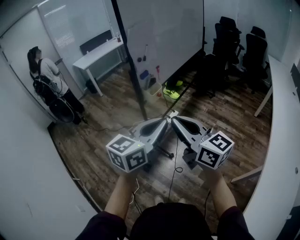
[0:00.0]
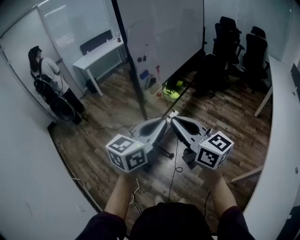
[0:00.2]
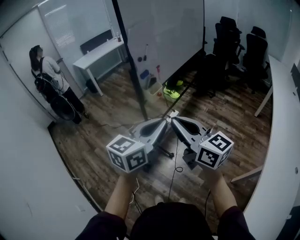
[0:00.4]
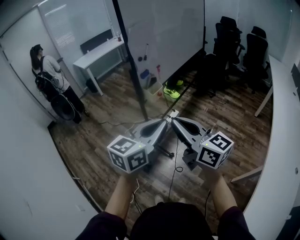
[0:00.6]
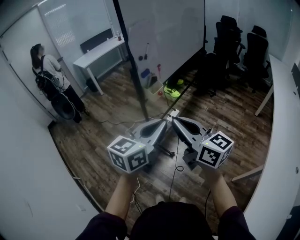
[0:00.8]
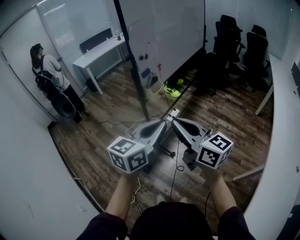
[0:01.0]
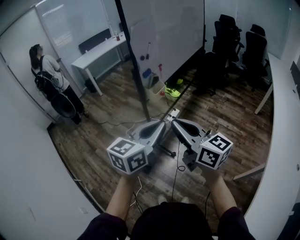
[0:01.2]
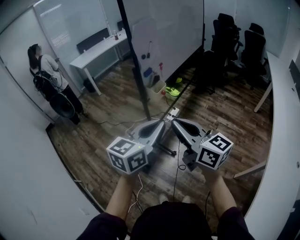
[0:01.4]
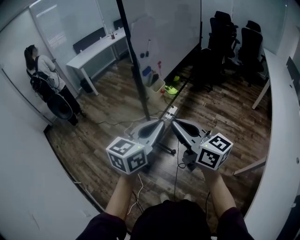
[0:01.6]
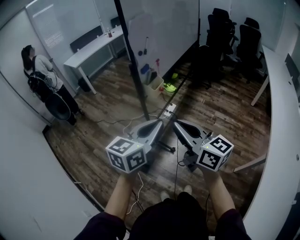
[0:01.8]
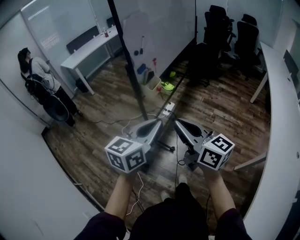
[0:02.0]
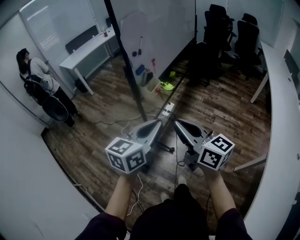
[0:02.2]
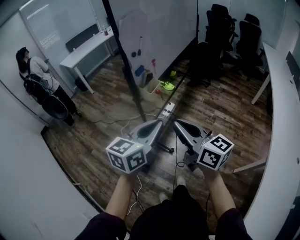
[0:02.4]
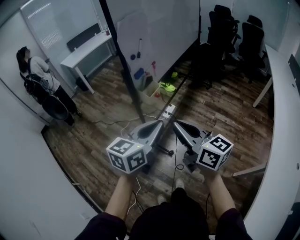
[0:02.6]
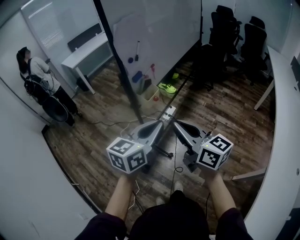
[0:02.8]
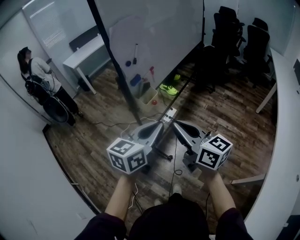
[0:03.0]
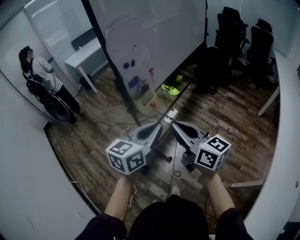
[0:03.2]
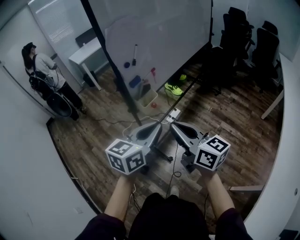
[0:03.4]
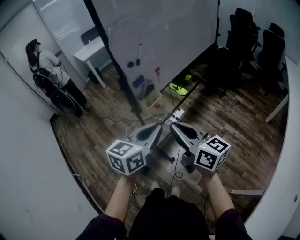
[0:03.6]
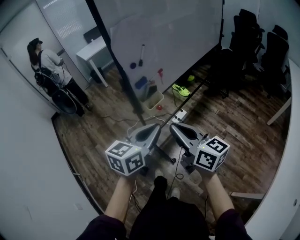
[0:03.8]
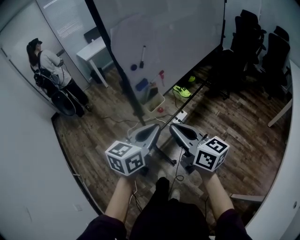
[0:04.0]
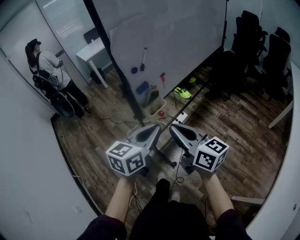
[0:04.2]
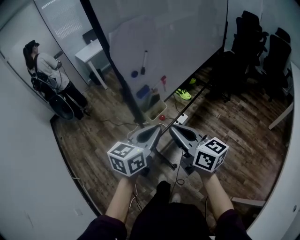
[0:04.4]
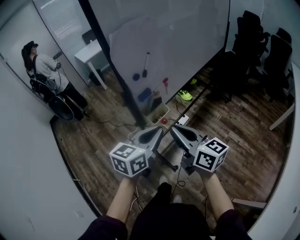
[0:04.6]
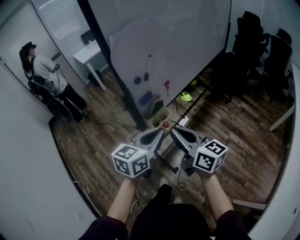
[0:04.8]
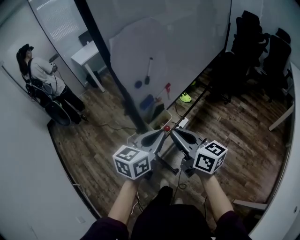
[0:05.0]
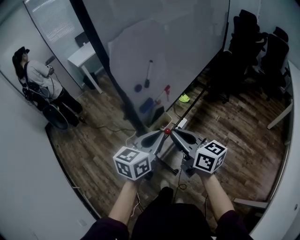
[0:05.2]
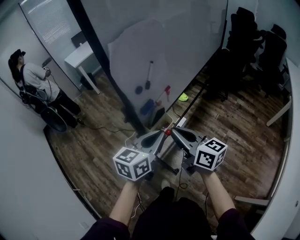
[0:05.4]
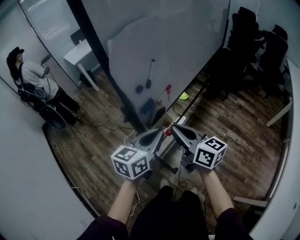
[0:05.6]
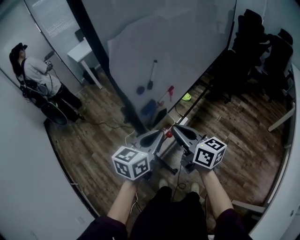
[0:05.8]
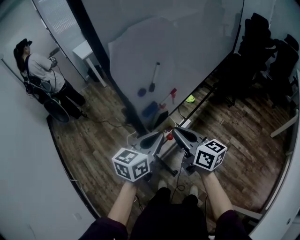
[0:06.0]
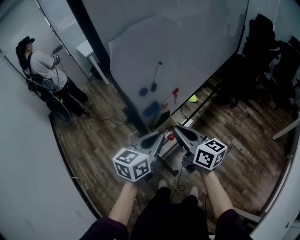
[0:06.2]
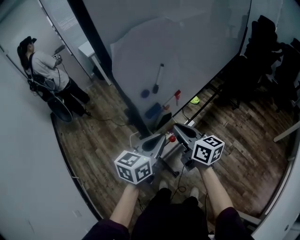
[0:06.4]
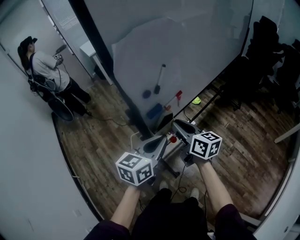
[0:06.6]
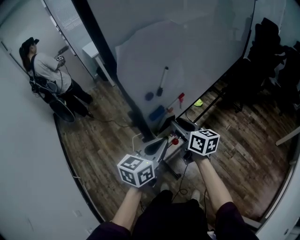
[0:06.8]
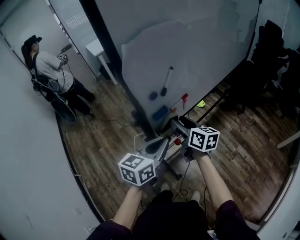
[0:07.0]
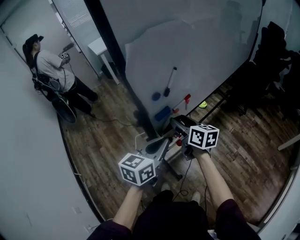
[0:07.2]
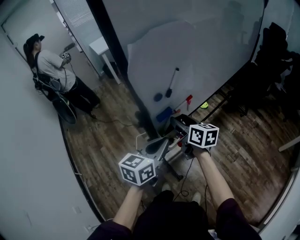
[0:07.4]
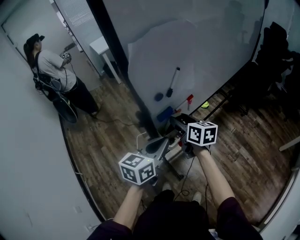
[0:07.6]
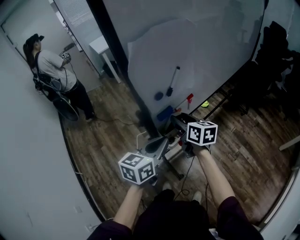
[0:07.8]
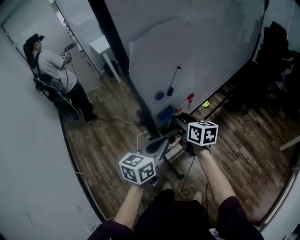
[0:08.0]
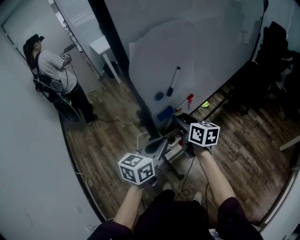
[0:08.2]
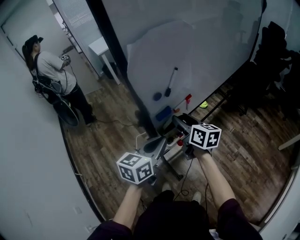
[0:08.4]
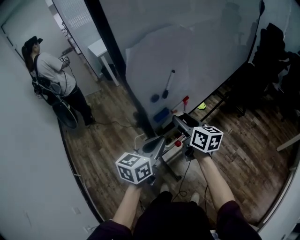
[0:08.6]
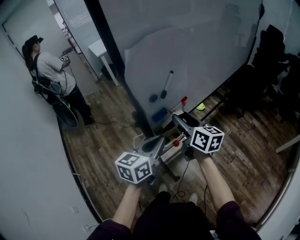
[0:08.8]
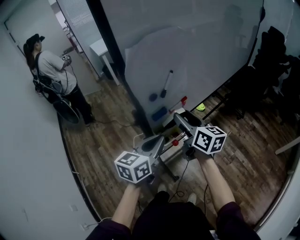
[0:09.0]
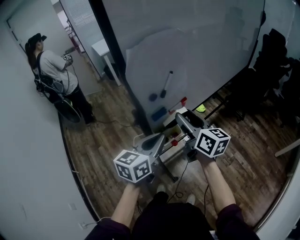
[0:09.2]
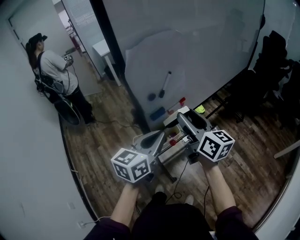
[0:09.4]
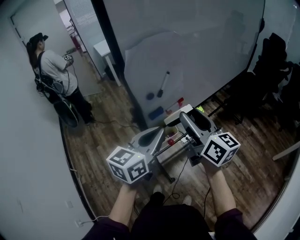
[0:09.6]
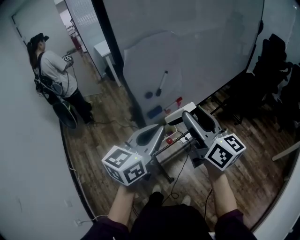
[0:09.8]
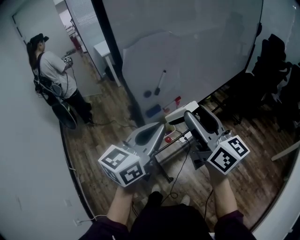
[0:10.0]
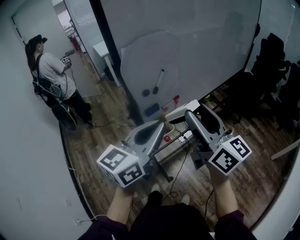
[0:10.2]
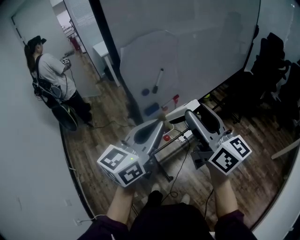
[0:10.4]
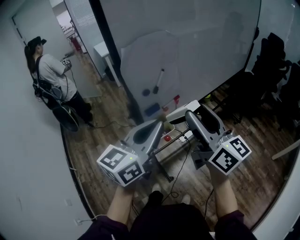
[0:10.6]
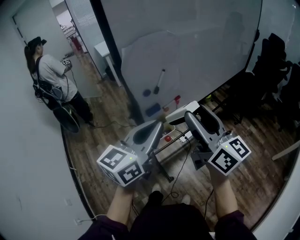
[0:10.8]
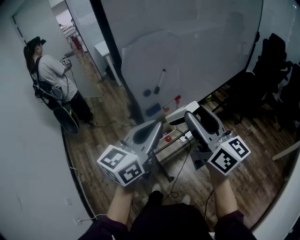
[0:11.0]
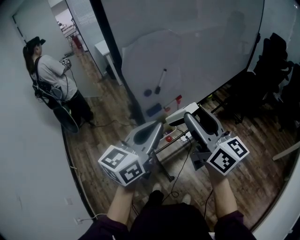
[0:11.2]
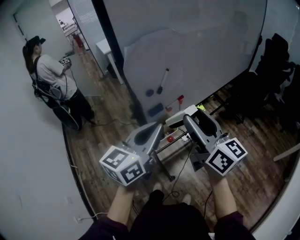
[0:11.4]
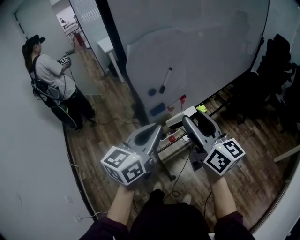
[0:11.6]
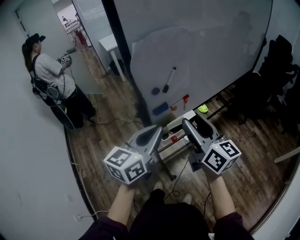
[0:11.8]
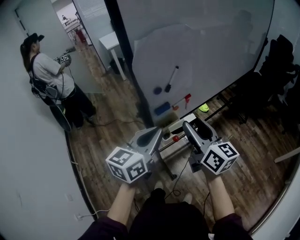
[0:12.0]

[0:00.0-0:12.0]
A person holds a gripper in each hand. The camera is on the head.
0:00.0 to 0:01.6: The grippers both shift to the left by roughly 5 cm.
0:01.6 to 0:03.0: The two grippers go some 15 cm forward and to the right.
0:03.0 to 0:04.4: The two grippers go roughly 15 cm forward.
0:04.4 to 0:06.0: The left gripper is displaced forward by about 10 cm; the right gripper is displaced forward and downward by approximately 15 cm.
0:06.0 to 0:07.6: The right gripper travels forward and downward by some 15 cm, and opens.
0:07.6 to 0:09.0: The right gripper travels upward by about 10 cm.
0:09.0 to 0:10.4: The left gripper heads upward, covering about 15 cm. The right gripper is displaced upward, backward and to the right by approximately 20 cm, and changes its angle by some 20 degrees.
0:10.4 to 0:12.0: The two grippers go roughly 10 cm downward.

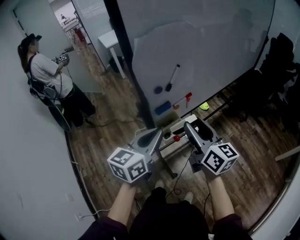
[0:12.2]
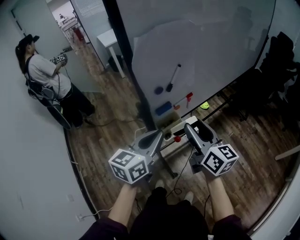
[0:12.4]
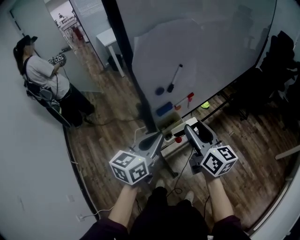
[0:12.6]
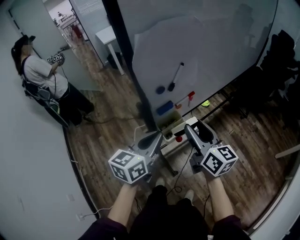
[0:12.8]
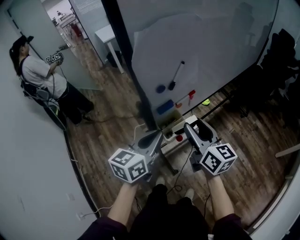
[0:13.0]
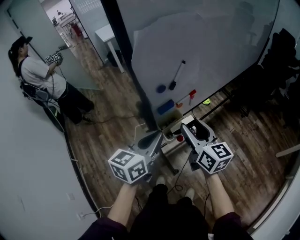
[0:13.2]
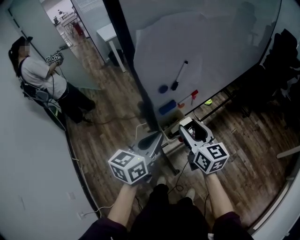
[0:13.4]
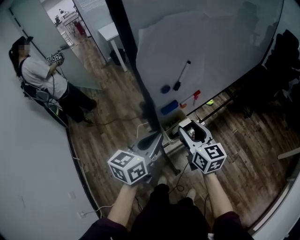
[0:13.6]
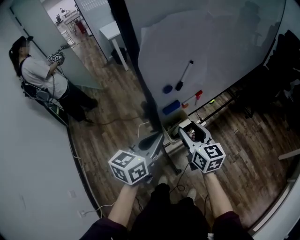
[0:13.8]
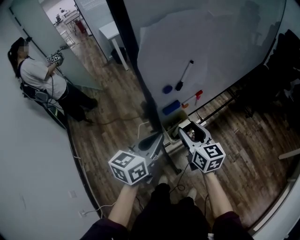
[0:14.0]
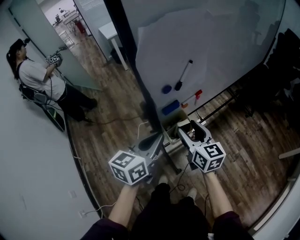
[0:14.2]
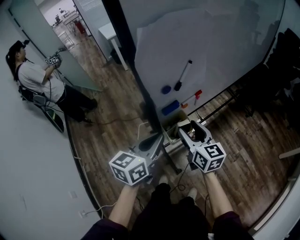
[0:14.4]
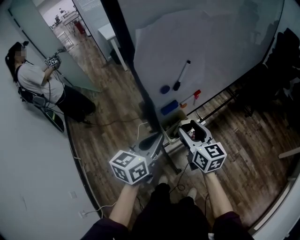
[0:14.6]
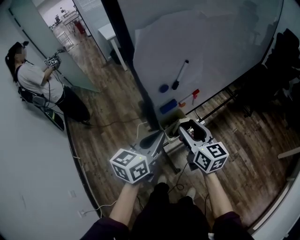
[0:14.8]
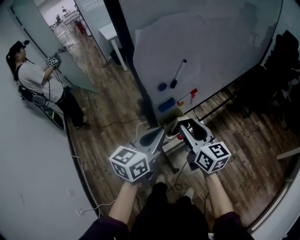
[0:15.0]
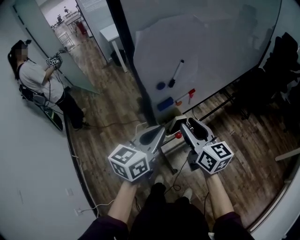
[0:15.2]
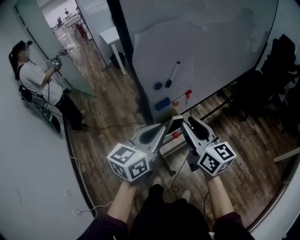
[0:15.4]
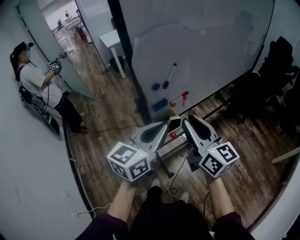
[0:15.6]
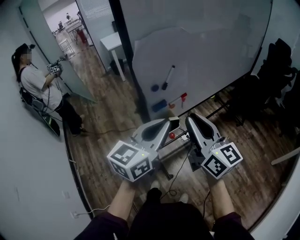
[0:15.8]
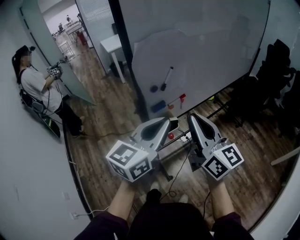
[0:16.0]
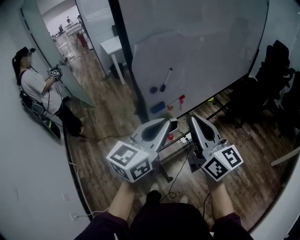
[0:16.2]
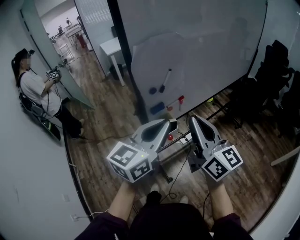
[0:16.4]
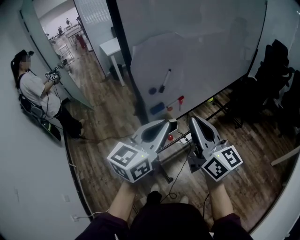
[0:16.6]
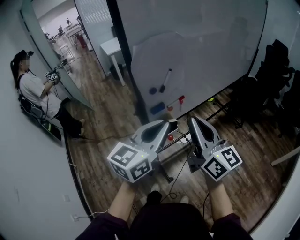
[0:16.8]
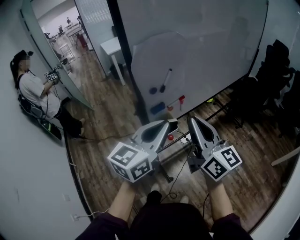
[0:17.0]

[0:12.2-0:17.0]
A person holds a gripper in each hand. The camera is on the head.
0:12.2 to 0:13.8: The right gripper travels downward and to the left by roughly 10 cm, while the left gripper moves about 5 cm.
0:13.8 to 0:15.4: The left gripper is displaced upward by about 5 cm. Meanwhile the right gripper heads upward and backward, covering roughly 15 cm, and closes up.
0:15.4 to 0:17.0: Both grippers travel together upward, approximately 10 cm. The right gripper closes.

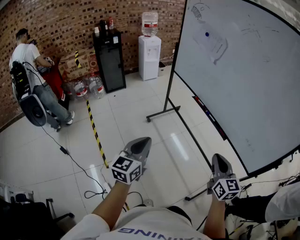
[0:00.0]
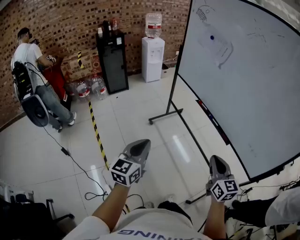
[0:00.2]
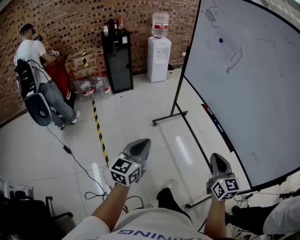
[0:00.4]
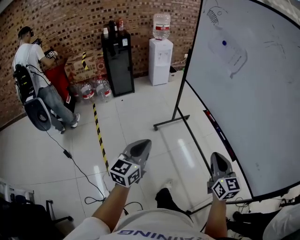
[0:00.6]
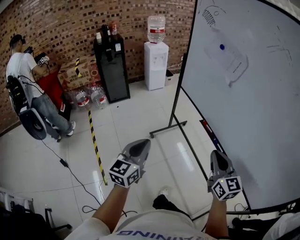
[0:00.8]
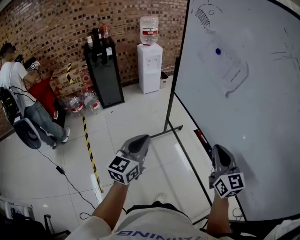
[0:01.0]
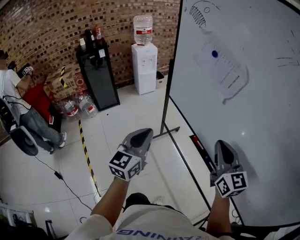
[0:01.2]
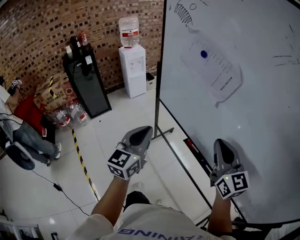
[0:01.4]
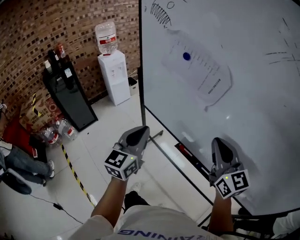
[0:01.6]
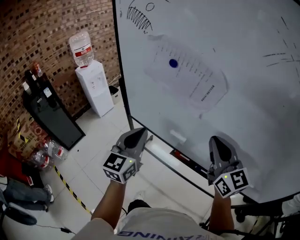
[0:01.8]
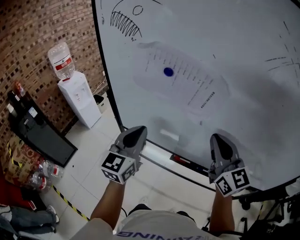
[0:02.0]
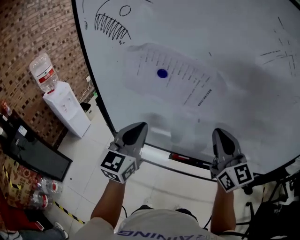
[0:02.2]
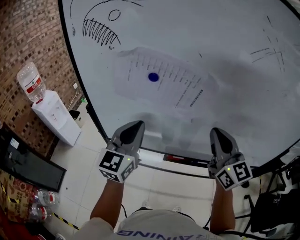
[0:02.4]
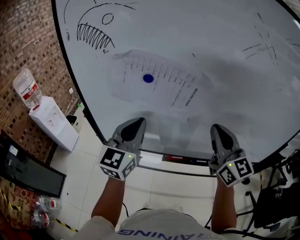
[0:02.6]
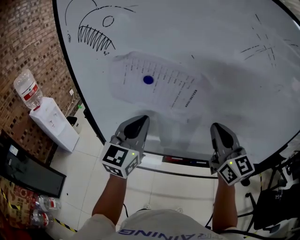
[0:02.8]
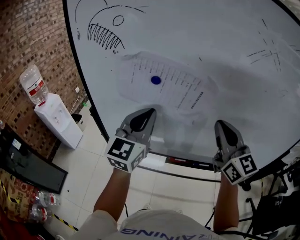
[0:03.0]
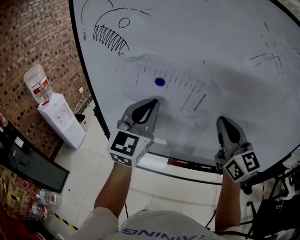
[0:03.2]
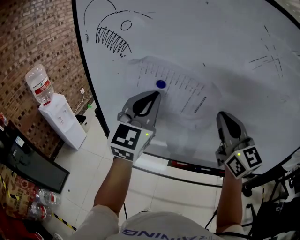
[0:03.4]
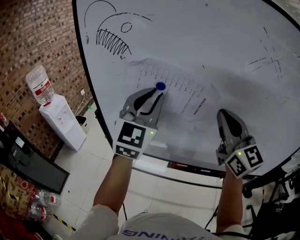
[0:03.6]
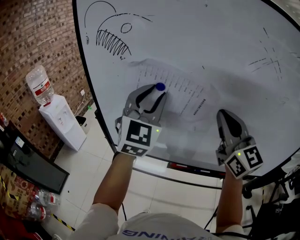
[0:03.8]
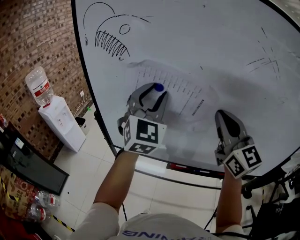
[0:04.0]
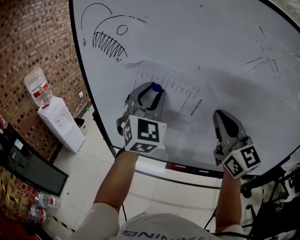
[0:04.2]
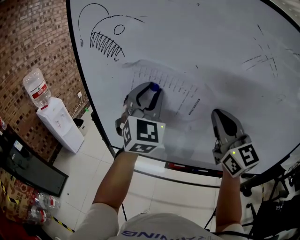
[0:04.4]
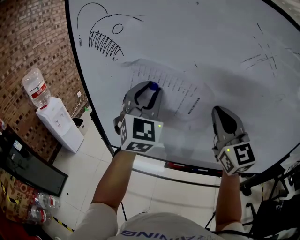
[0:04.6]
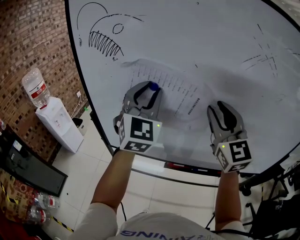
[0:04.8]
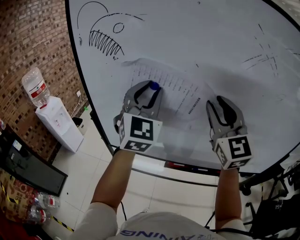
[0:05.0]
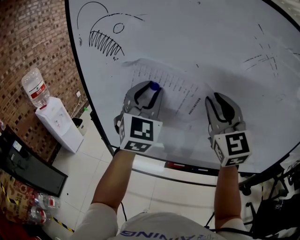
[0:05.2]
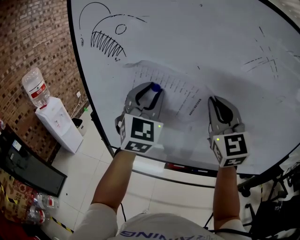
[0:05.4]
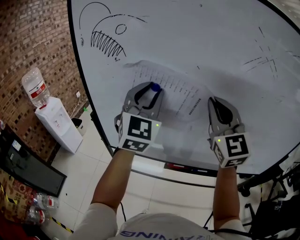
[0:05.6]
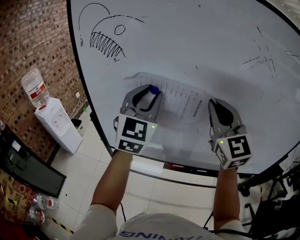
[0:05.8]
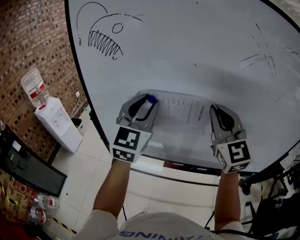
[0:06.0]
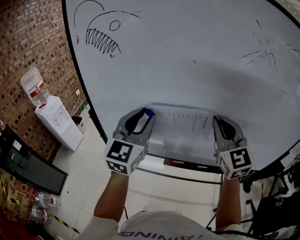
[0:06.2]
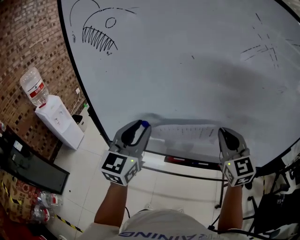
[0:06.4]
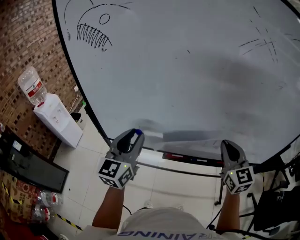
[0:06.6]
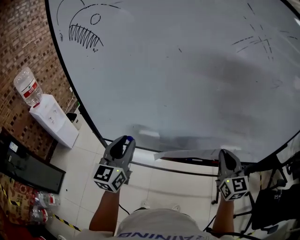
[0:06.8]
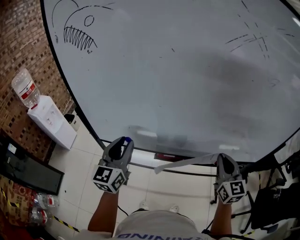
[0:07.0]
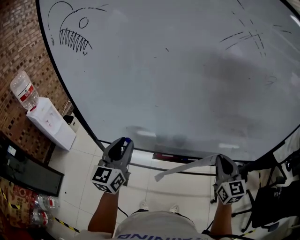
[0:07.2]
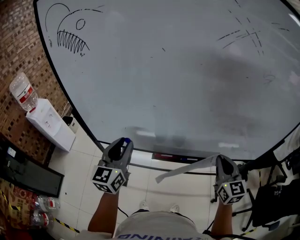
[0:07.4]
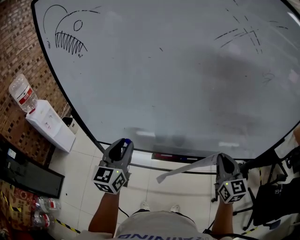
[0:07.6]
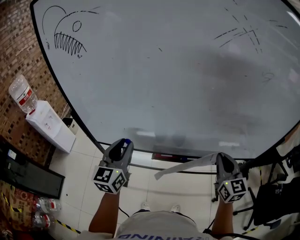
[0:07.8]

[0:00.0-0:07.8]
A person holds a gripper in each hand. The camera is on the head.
0:00.0 to 0:01.6: The pair of grippers is taken forward, some 50 cm.
0:01.6 to 0:03.2: The right gripper shifts approximately 10 cm upward, and changes its angle by about 30 degrees. The left gripper shifts by roughly 25 cm, and turns by about 40 degrees.
0:03.2 to 0:04.6: The left gripper moves approximately 5 cm, rotates approximately 20 degrees, and opens up.
0:04.6 to 0:06.2: The left gripper moves downward and backward, approximately 10 cm, and changes its angle by approximately 30 degrees, while the right gripper goes approximately 5 cm downward, and opens and closes again.
0:06.2 to 0:07.8: The right gripper shifts roughly 25 cm downward, to the right and backward, and swivels about 30 degrees; the left gripper goes approximately 15 cm downward.
